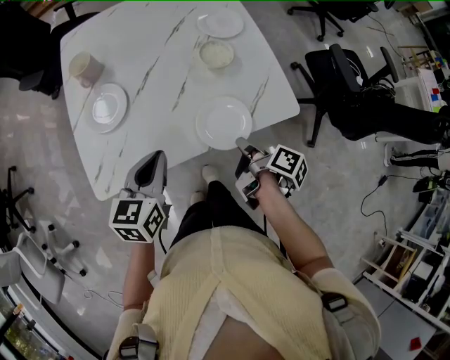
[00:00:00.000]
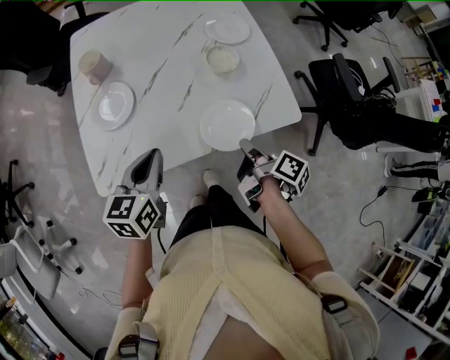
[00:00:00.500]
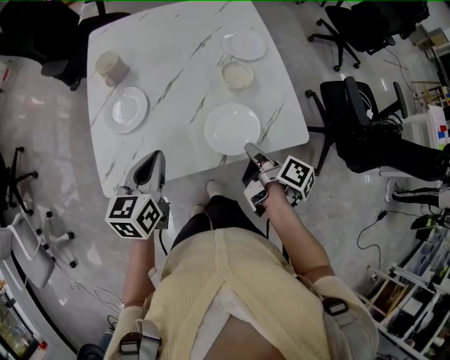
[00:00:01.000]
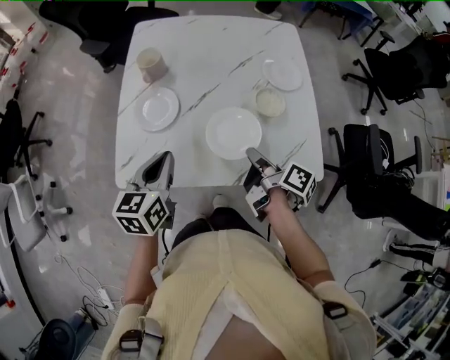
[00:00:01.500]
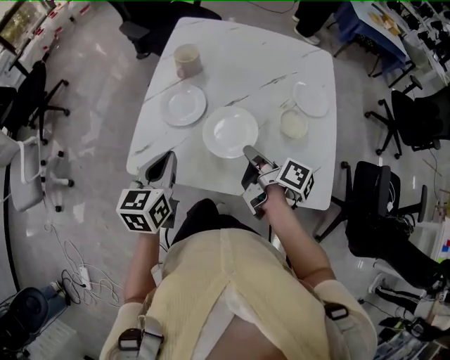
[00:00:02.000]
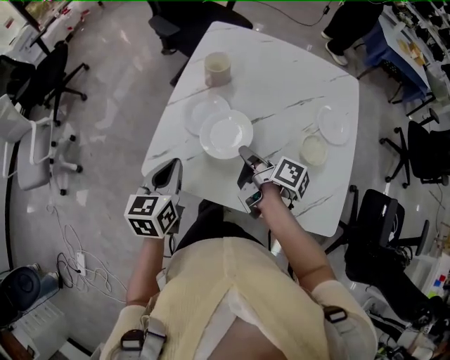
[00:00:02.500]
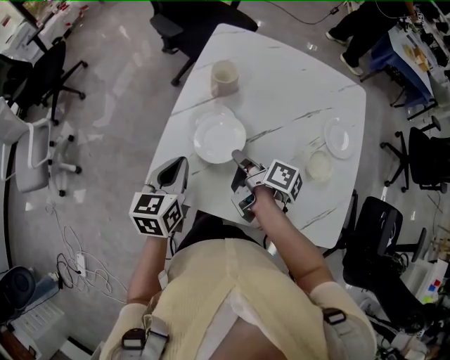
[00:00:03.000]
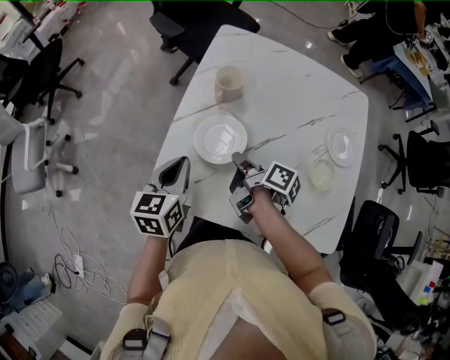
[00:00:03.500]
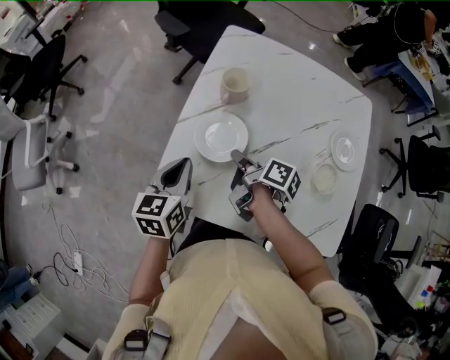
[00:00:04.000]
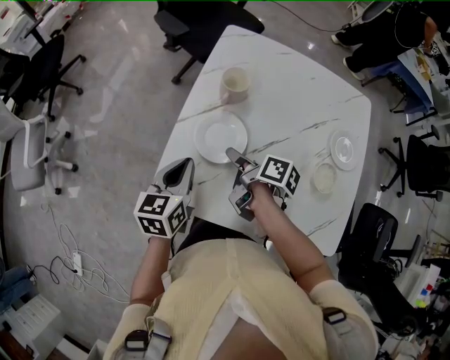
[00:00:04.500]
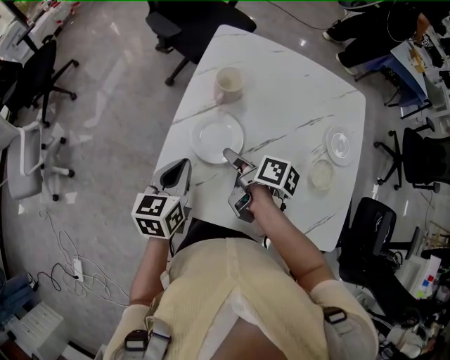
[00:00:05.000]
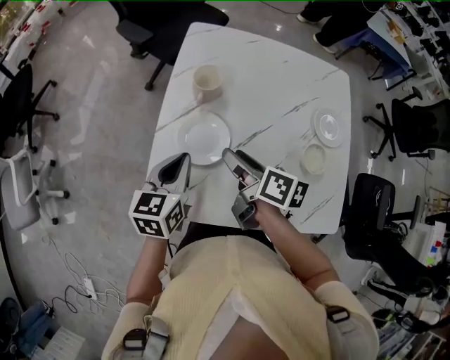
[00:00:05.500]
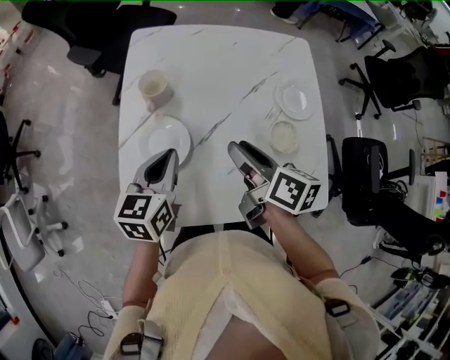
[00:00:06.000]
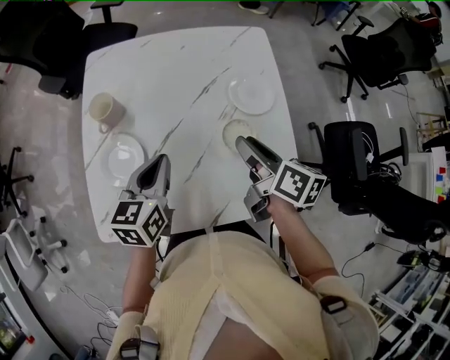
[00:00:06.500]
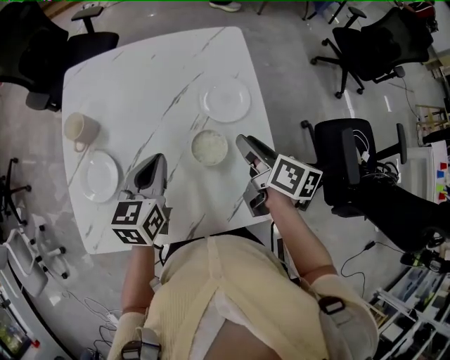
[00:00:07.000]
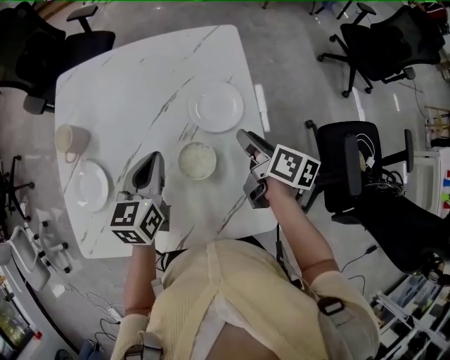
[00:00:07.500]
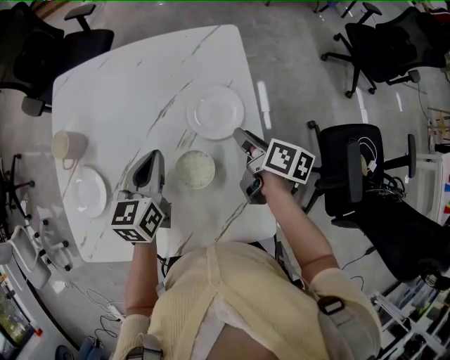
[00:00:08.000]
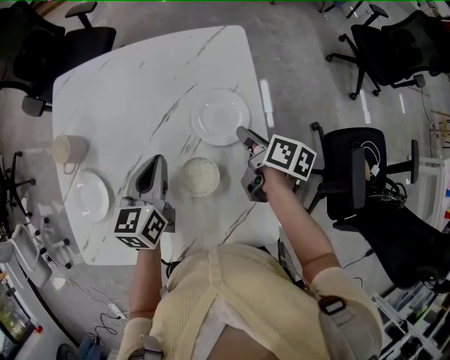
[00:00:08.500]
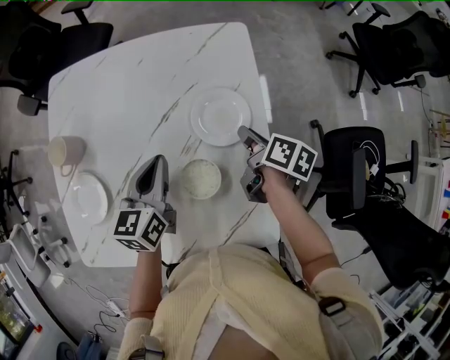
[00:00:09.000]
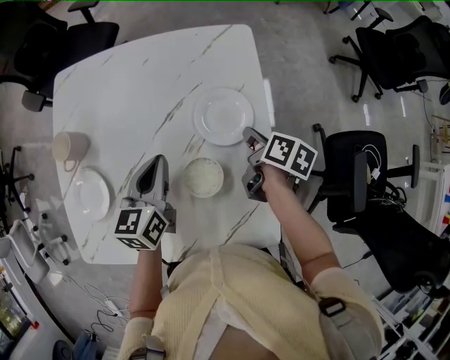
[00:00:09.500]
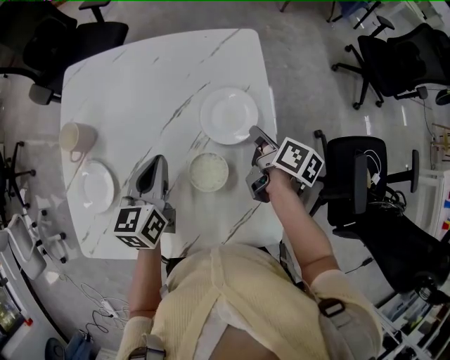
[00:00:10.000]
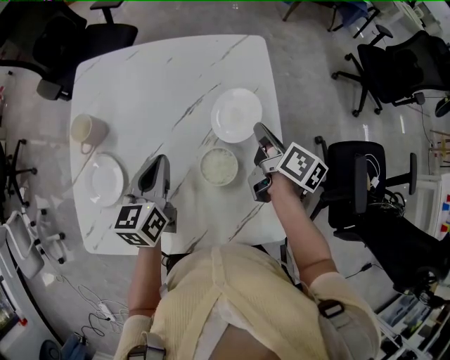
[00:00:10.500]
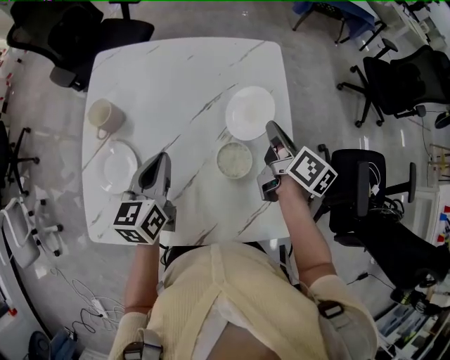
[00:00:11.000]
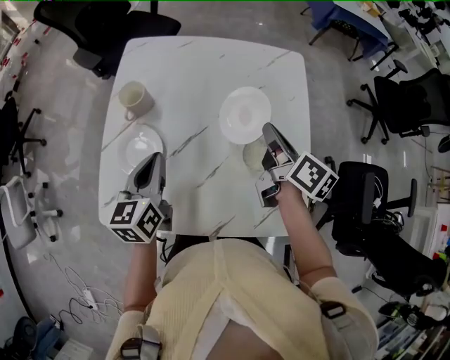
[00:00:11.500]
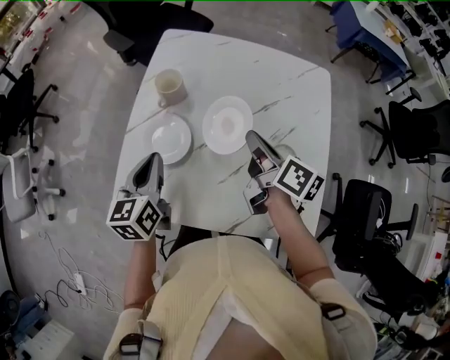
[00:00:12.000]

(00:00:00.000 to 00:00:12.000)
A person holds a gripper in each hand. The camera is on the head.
00:00:00.000 - 00:00:02.000: The left gripper shifts by roughly 10 cm, and rotates roughly 30 degrees, while the right gripper shifts by approximately 20 cm, and swivels approximately 40 degrees.
00:00:02.000 - 00:00:04.000: The right gripper heads forward and to the left, covering some 20 cm, while the left gripper goes some 10 cm forward and to the left.
00:00:04.000 - 00:00:06.000: The left gripper shifts roughly 10 cm to the right, and changes its angle by some 20 degrees, while the right gripper moves upward and to the right, some 15 cm, swivels approximately 30 degrees, and opens.
00:00:06.000 - 00:00:08.000: The left gripper heads to the right and forward, covering some 25 cm. The right gripper travels to the right by about 30 cm.
00:00:08.000 - 00:00:10.000: The right gripper closes.
00:00:10.000 - 00:00:12.000: The right gripper heads to the left and upward, covering some 30 cm, and swivels about 30 degrees, while the left gripper shifts about 25 cm to the left and backward.

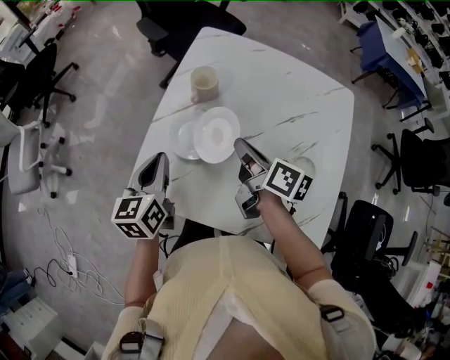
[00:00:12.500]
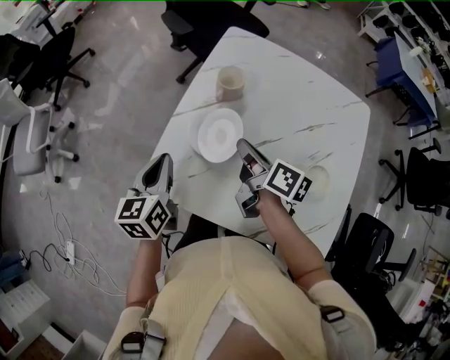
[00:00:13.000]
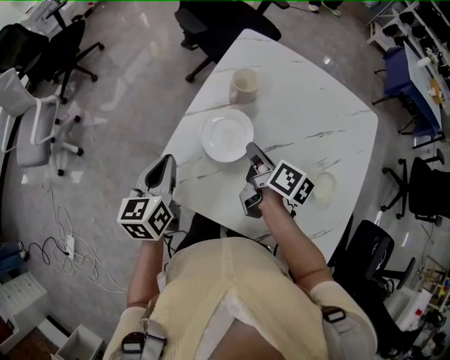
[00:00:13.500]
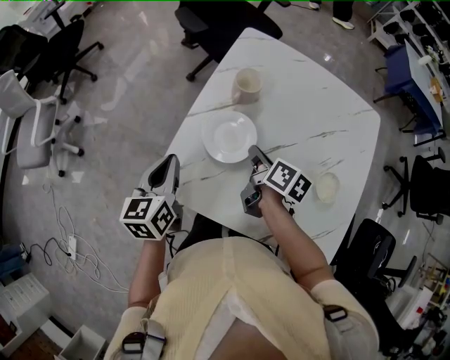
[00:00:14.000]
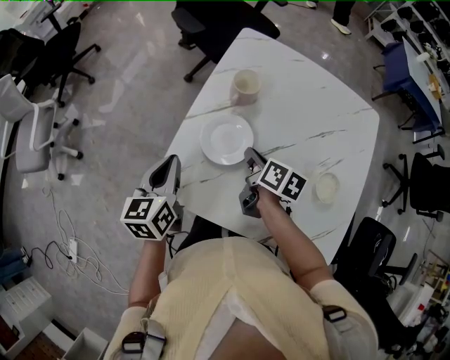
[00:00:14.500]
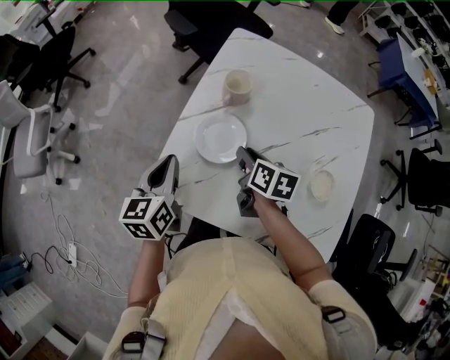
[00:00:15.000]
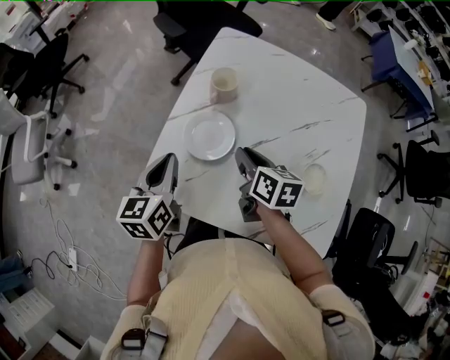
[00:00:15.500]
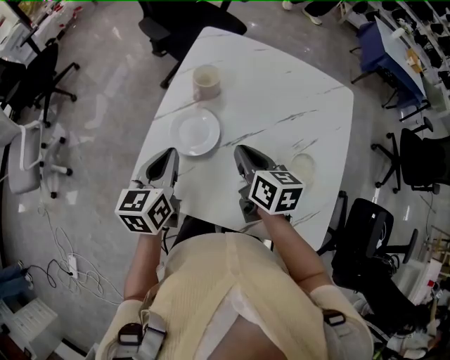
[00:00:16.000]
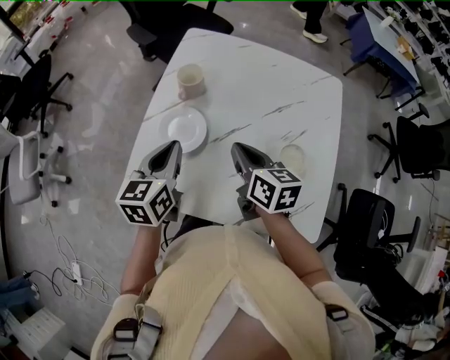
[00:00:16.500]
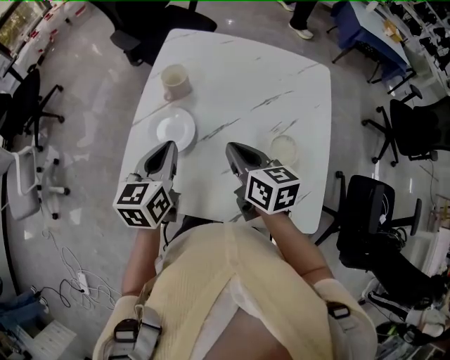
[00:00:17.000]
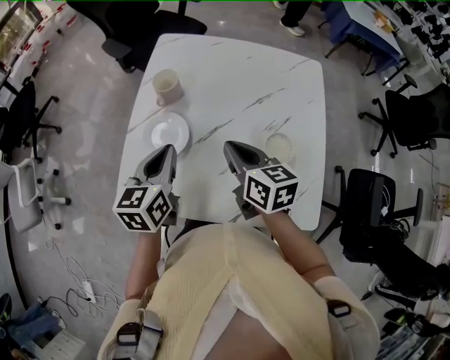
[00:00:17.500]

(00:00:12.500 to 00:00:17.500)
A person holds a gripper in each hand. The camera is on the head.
00:00:12.500 - 00:00:15.000: The left gripper heads to the left, covering about 5 cm. Meanwhile the right gripper is displaced downward and to the left by approximately 10 cm, and swivels approximately 30 degrees.
00:00:15.000 - 00:00:17.500: The right gripper shifts about 15 cm upward, to the right and backward, and closes its fingers. Meanwhile the left gripper moves to the right, about 15 cm.

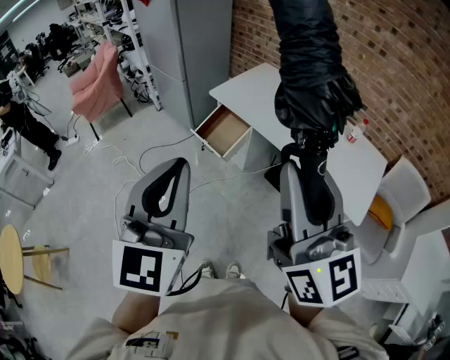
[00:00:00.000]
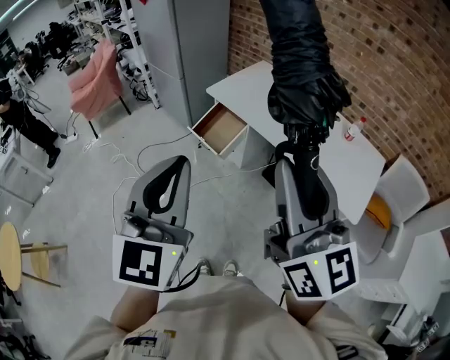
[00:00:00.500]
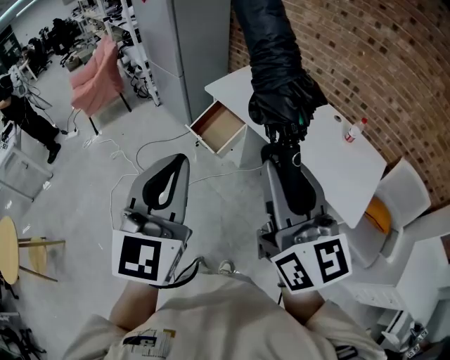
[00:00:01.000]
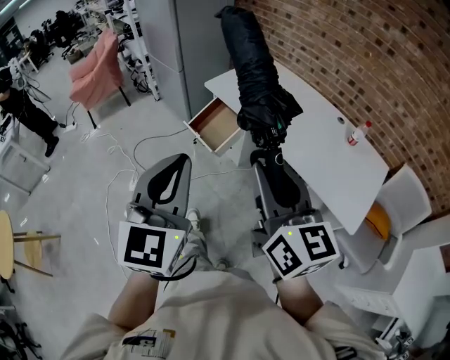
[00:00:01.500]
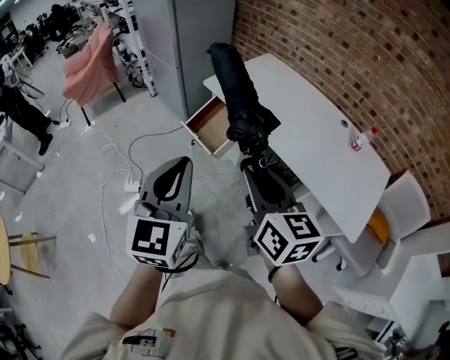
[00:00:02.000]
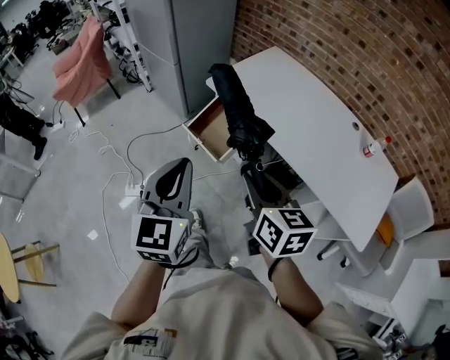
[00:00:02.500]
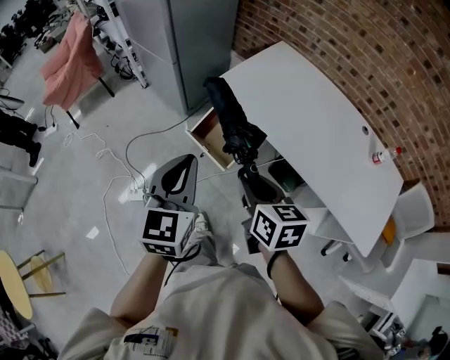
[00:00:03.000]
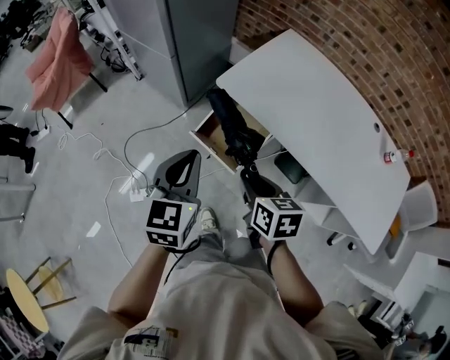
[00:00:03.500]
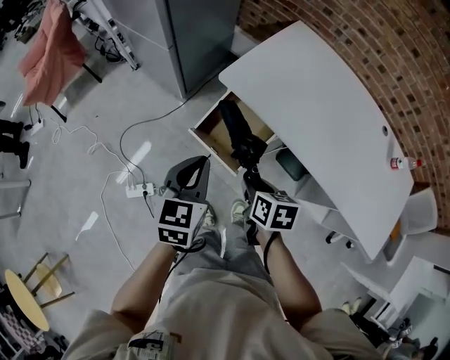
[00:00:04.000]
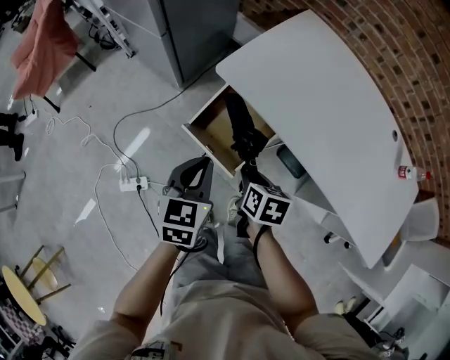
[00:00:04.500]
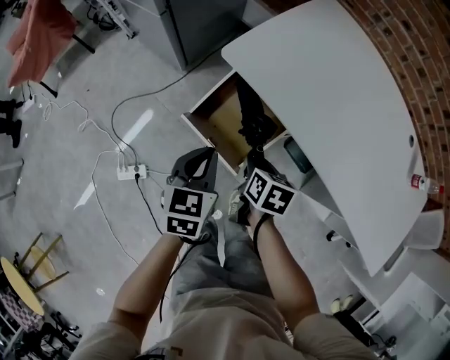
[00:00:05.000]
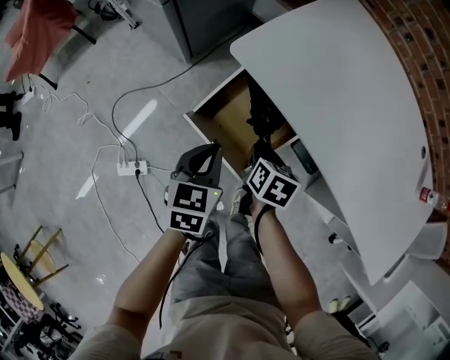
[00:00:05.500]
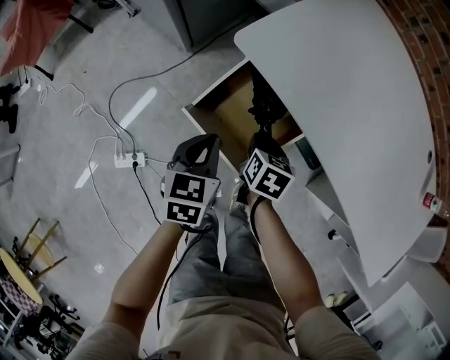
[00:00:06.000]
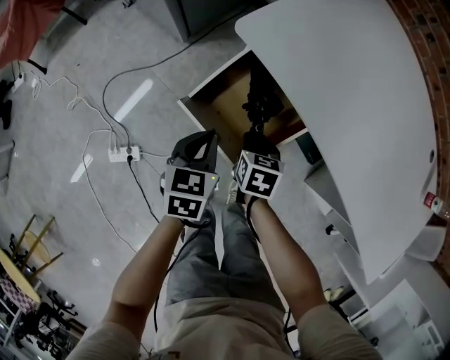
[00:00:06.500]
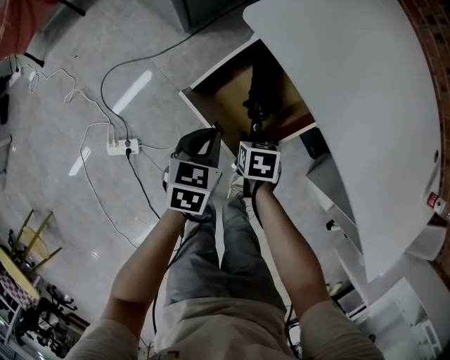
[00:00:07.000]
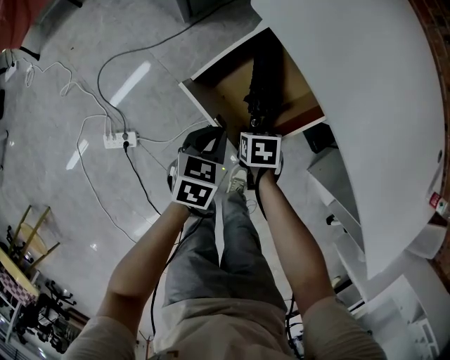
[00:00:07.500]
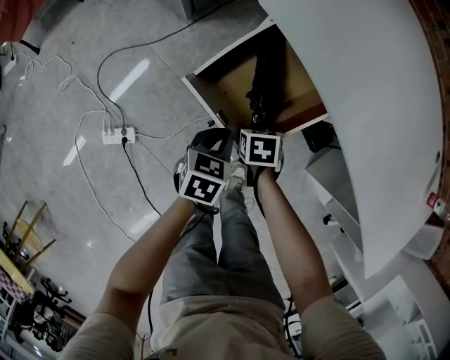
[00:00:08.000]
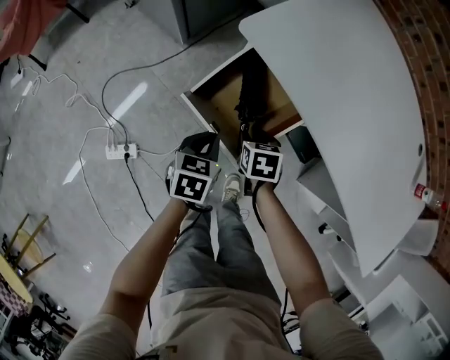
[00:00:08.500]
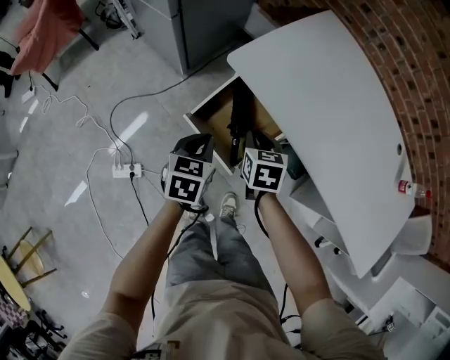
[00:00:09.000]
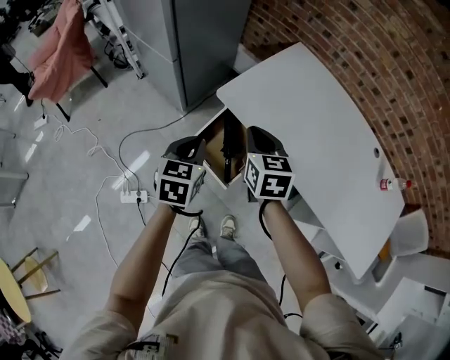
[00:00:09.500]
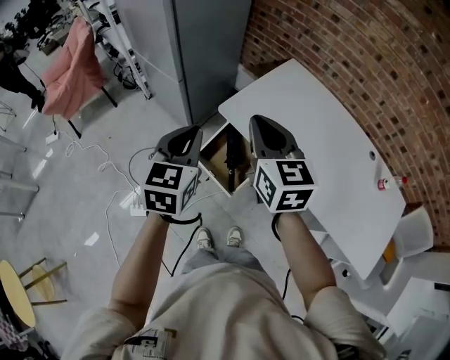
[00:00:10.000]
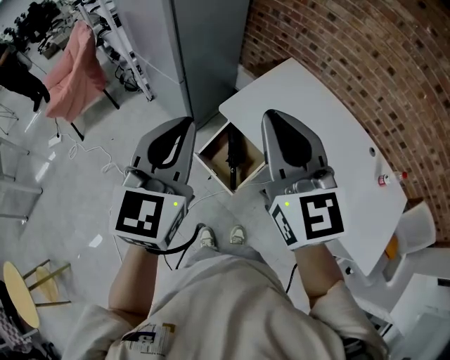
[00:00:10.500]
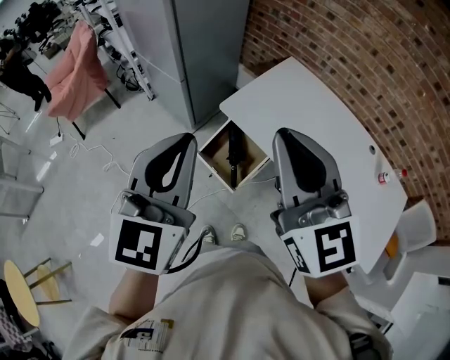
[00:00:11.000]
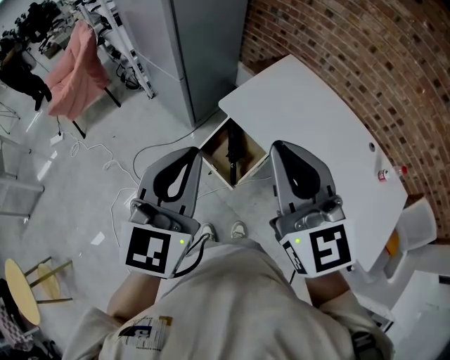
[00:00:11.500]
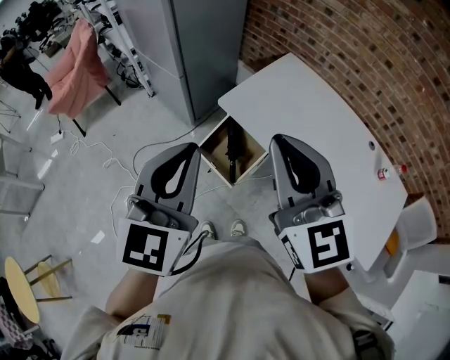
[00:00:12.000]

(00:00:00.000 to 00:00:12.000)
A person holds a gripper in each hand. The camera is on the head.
00:00:00.000 - 00:00:02.000: The two grippers go about 20 cm downward and forward. The right gripper rotates approximately 30 degrees.
00:00:02.000 - 00:00:04.000: The two grippers go approximately 50 cm forward and downward. The right gripper points its fingers some 40 degrees further downward. The left gripper swivels approximately 30 degrees.
00:00:04.000 - 00:00:06.000: The two grippers go approximately 25 cm downward and forward.
00:00:06.000 - 00:00:08.000: Both grippers travel together downward, approximately 15 cm. The right gripper swivels approximately 30 degrees, and opens its fingers.
00:00:08.000 - 00:00:10.000: The grippers both shift upward by some 60 cm. The right gripper tips its fingers upward by approximately 60 degrees, and closes. The left gripper turns by some 40 degrees.
00:00:10.000 - 00:00:12.000: The right gripper heads backward and upward, covering about 20 cm; the left gripper heads upward and backward, covering roughly 20 cm.
